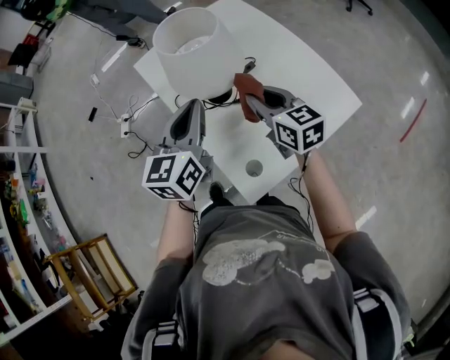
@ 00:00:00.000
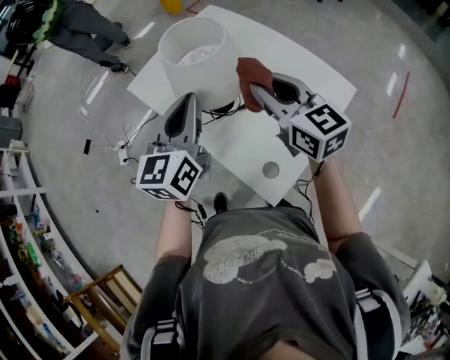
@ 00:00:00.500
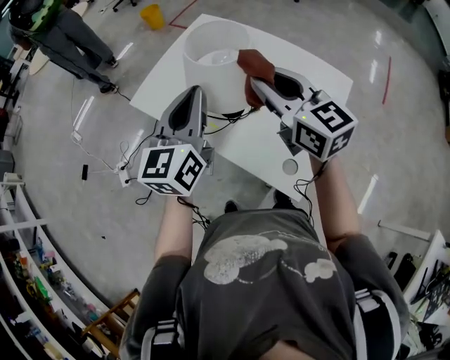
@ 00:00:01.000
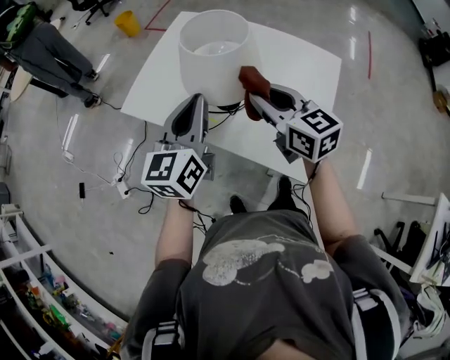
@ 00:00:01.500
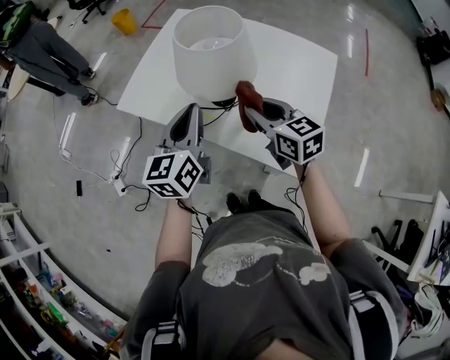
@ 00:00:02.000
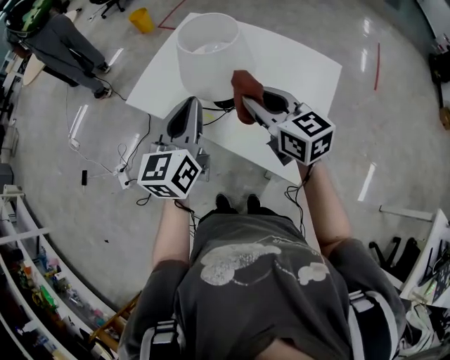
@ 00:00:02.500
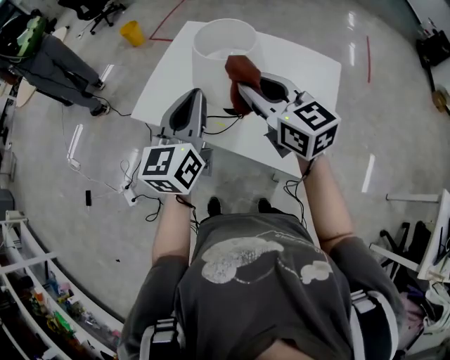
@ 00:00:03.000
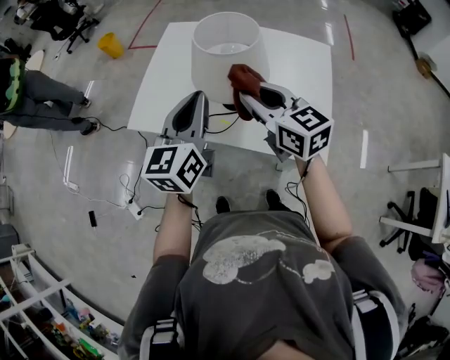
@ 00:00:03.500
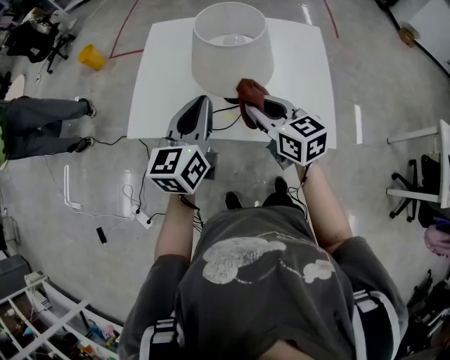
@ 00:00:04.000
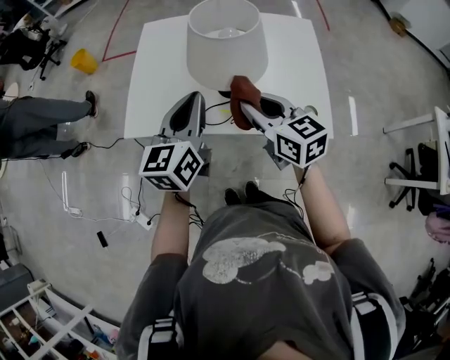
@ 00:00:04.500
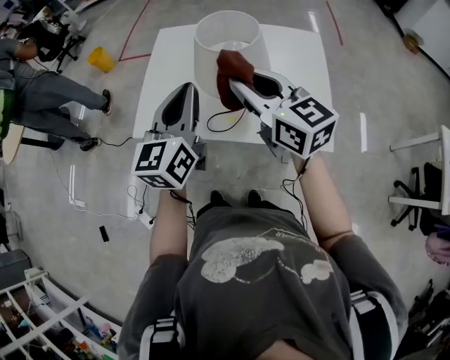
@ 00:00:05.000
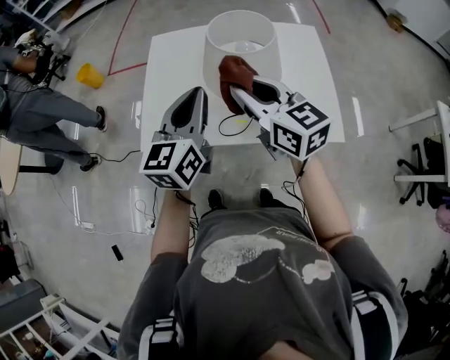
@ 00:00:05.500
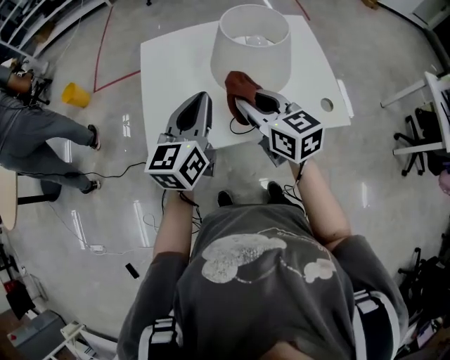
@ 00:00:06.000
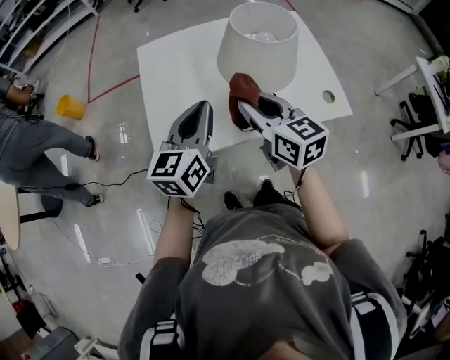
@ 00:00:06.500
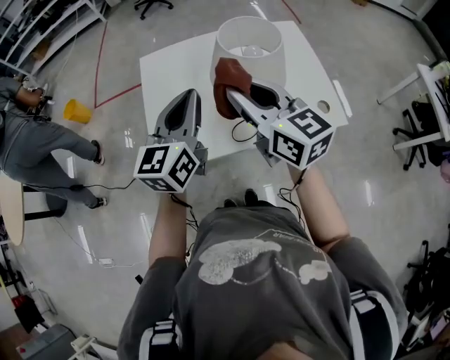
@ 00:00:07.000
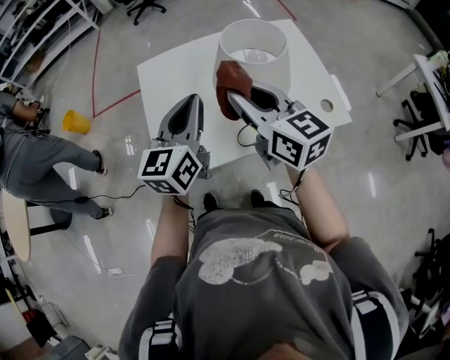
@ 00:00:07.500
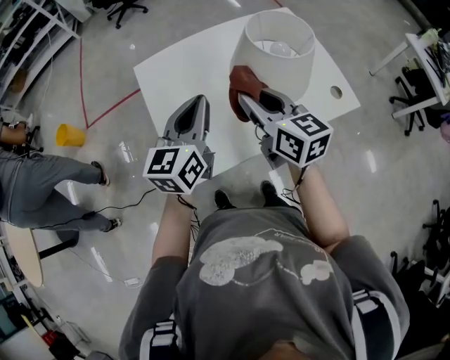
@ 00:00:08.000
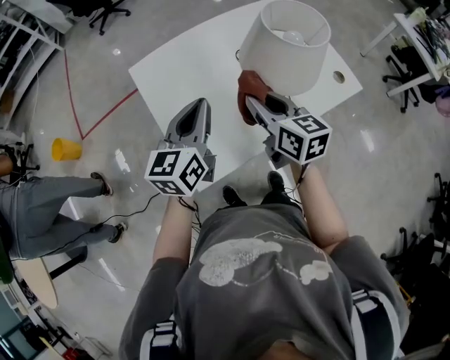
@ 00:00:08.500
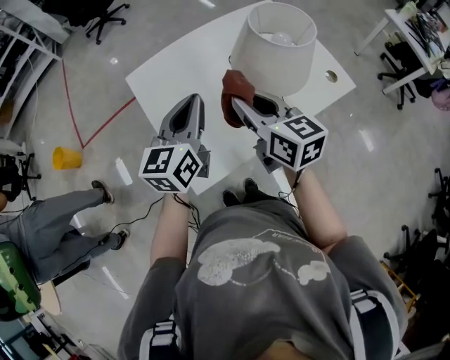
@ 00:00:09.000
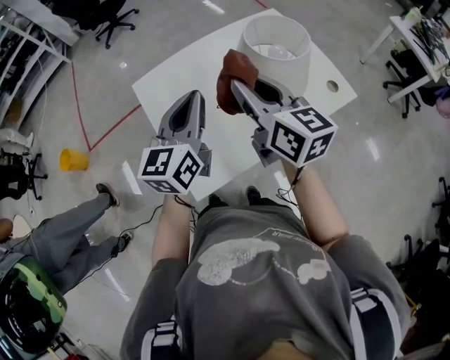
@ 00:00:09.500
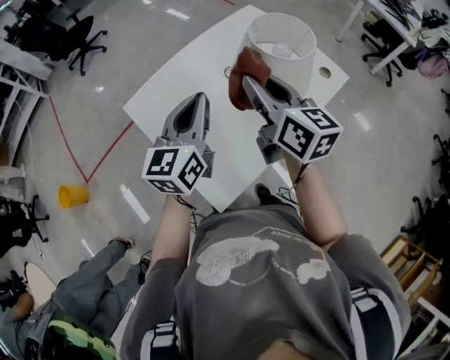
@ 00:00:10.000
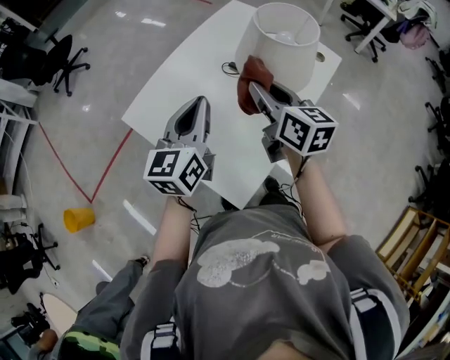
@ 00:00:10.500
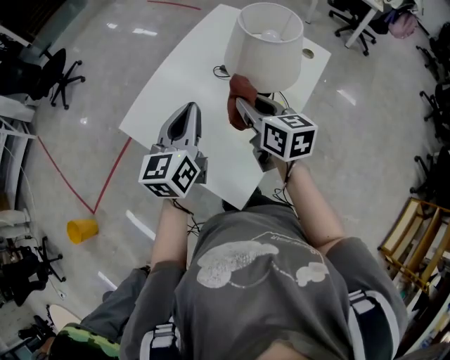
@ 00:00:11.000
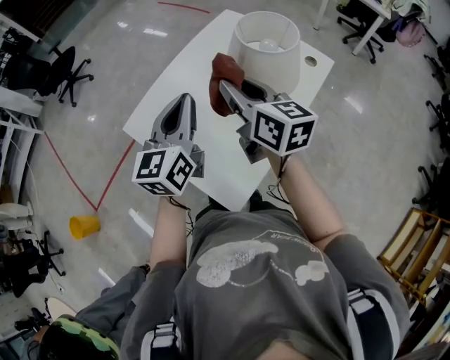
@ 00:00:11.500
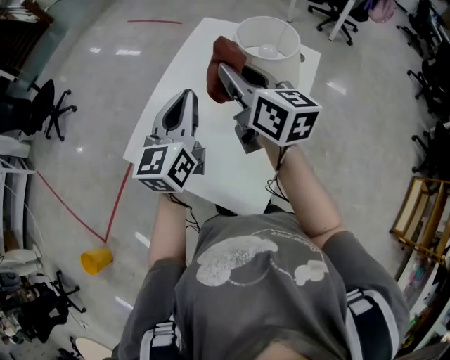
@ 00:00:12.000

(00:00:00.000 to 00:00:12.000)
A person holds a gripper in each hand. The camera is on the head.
00:00:00.000 - 00:00:02.000: The right gripper travels upward and back again, about 15 cm each way, and changes its angle by roughly 30 degrees. The left gripper moves some 10 cm, and swivels roughly 30 degrees.
00:00:02.000 - 00:00:04.000: The left gripper heads to the left and forward, covering approximately 5 cm, goes upward and returns, some 10 cm each way, and rotates roughly 20 degrees; the right gripper heads to the left, covering some 10 cm, and reaches about 15 cm upward, then returns.
00:00:04.000 - 00:00:06.000: The left gripper shifts approximately 10 cm to the left and forward; the right gripper travels to the left by about 10 cm, and travels upward and back again, some 15 cm each way.
00:00:06.000 - 00:00:08.000: The right gripper moves to the left and forward, some 10 cm, travels upward and back again, roughly 10 cm each way, and swivels some 20 degrees. The left gripper is displaced forward and to the left by about 10 cm.
00:00:08.000 - 00:00:10.000: The right gripper heads upward, covering approximately 5 cm, and changes its angle by approximately 30 degrees, while the left gripper heads forward, covering approximately 5 cm.
00:00:10.000 - 00:00:12.000: The grippers both shift forward by roughly 5 cm. The right gripper reaches some 10 cm downward, then returns.

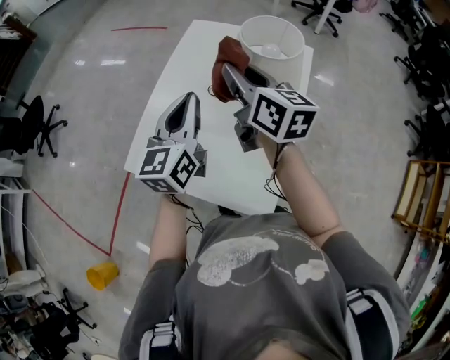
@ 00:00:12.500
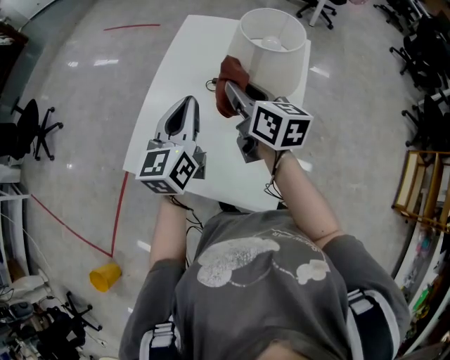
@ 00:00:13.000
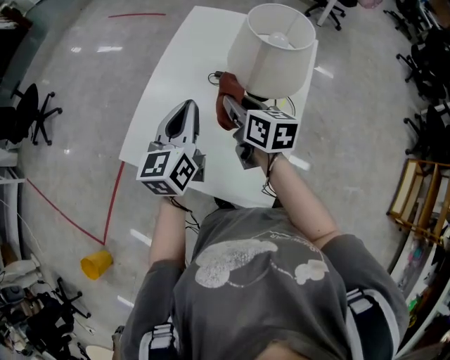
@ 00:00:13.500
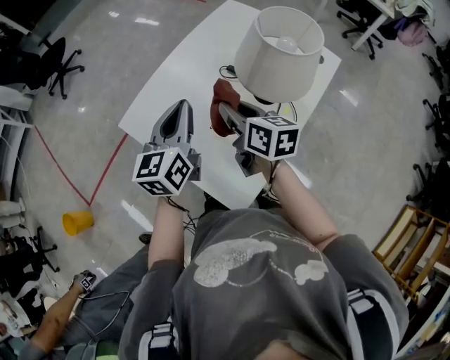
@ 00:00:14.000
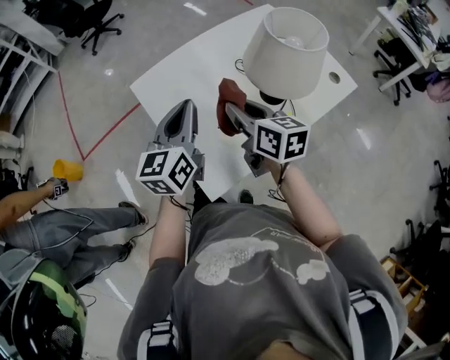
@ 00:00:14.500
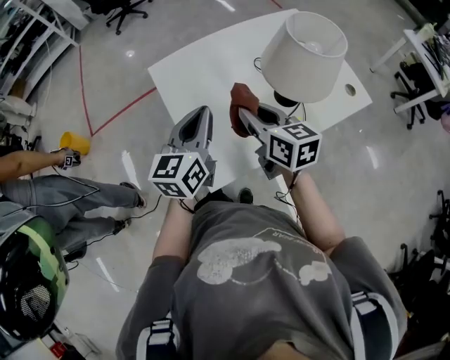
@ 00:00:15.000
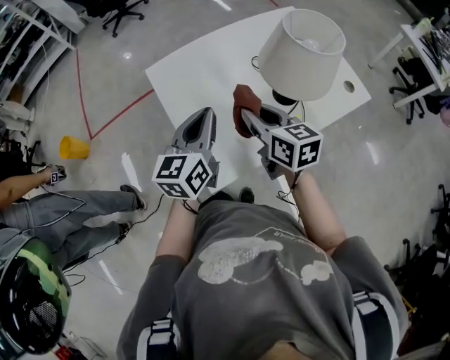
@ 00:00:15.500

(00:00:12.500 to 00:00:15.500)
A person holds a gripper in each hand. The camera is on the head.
00:00:12.500 - 00:00:14.000: The right gripper is displaced downward and backward by approximately 15 cm, and swivels about 30 degrees. The left gripper shifts approximately 10 cm downward and backward, and turns by approximately 20 degrees.
00:00:14.000 - 00:00:15.500: The right gripper heads backward, covering approximately 10 cm, and changes its angle by approximately 30 degrees. The left gripper travels backward by about 10 cm.

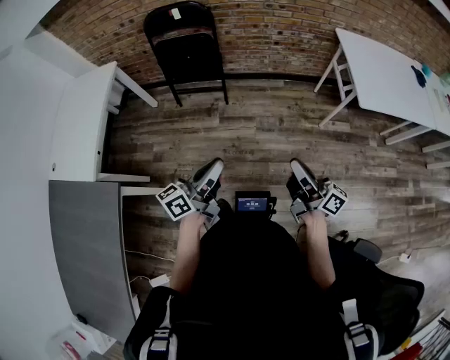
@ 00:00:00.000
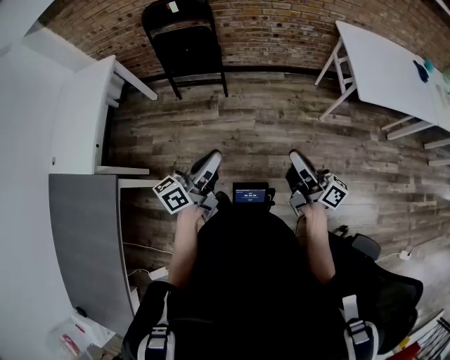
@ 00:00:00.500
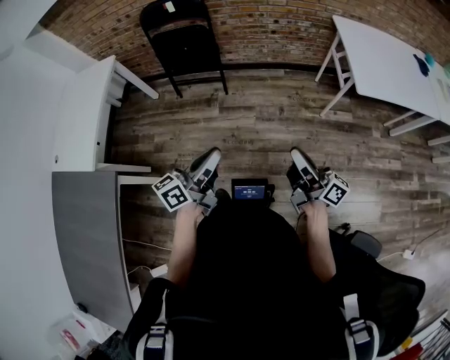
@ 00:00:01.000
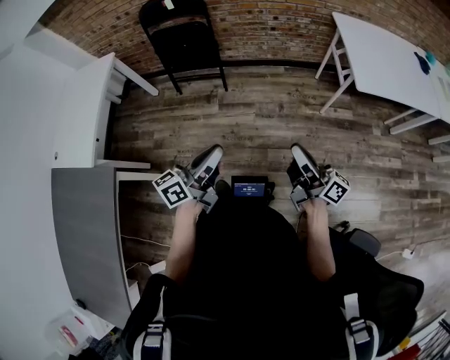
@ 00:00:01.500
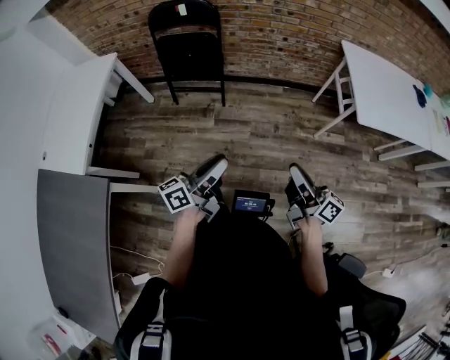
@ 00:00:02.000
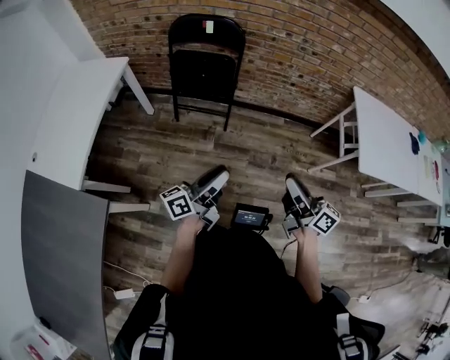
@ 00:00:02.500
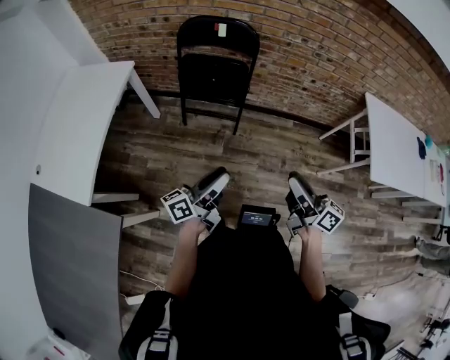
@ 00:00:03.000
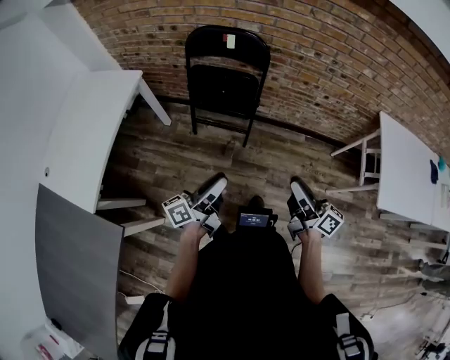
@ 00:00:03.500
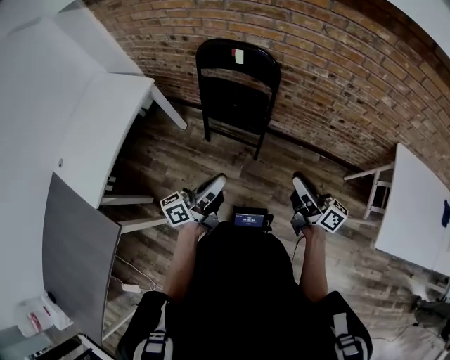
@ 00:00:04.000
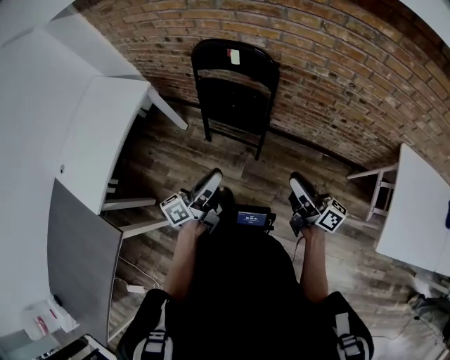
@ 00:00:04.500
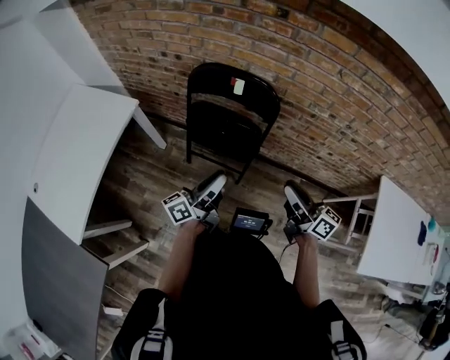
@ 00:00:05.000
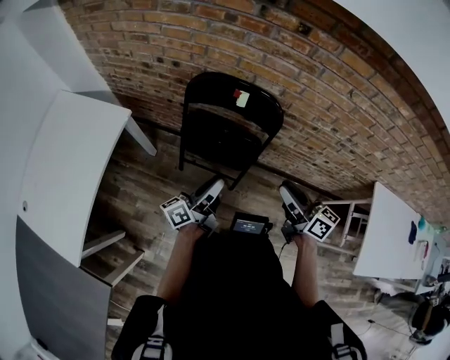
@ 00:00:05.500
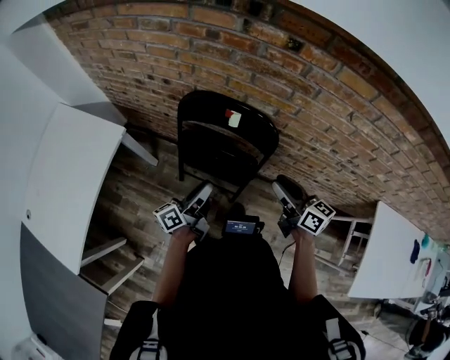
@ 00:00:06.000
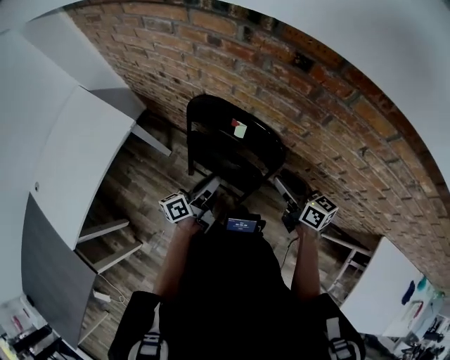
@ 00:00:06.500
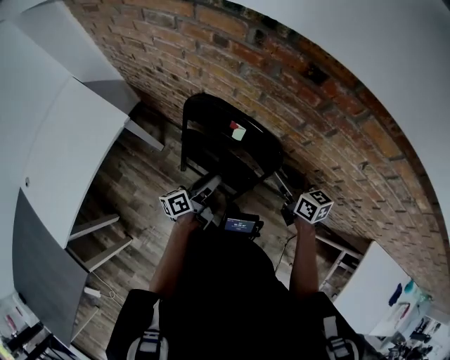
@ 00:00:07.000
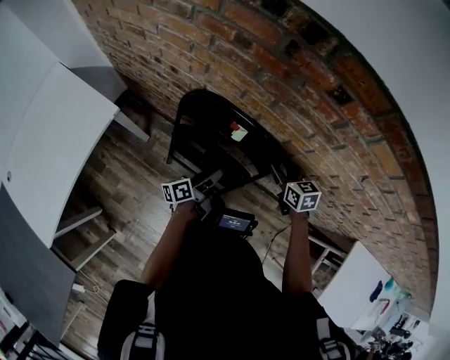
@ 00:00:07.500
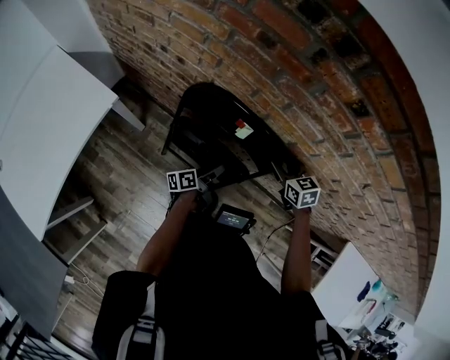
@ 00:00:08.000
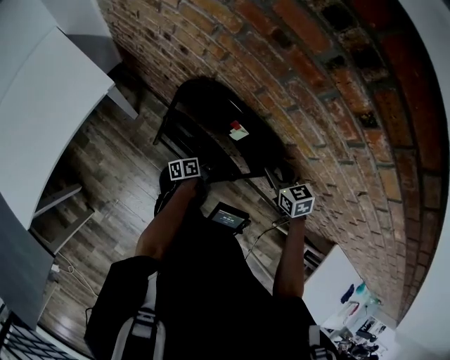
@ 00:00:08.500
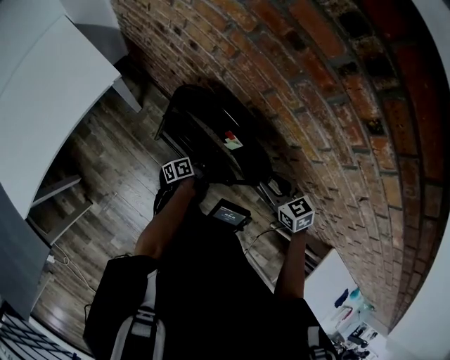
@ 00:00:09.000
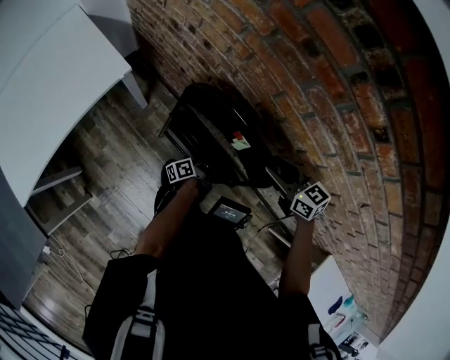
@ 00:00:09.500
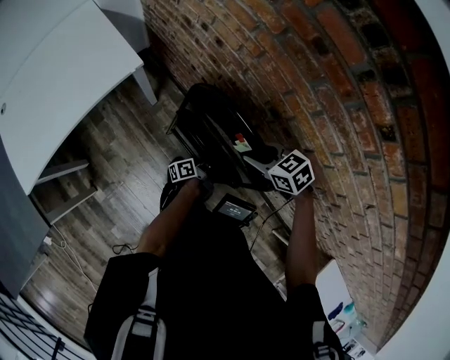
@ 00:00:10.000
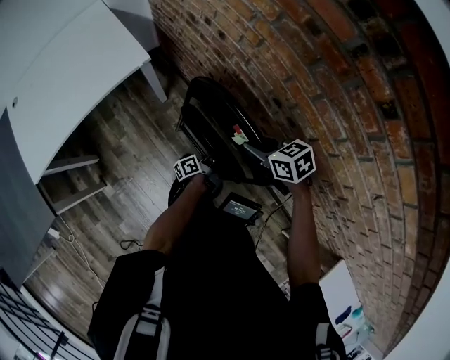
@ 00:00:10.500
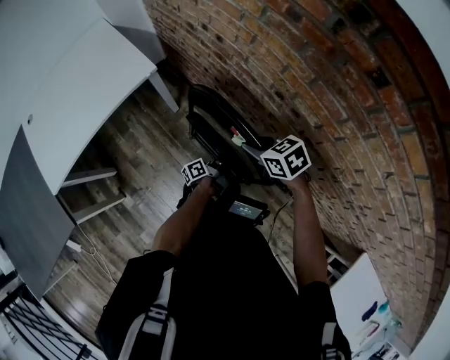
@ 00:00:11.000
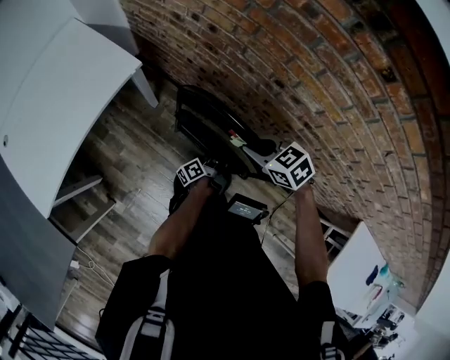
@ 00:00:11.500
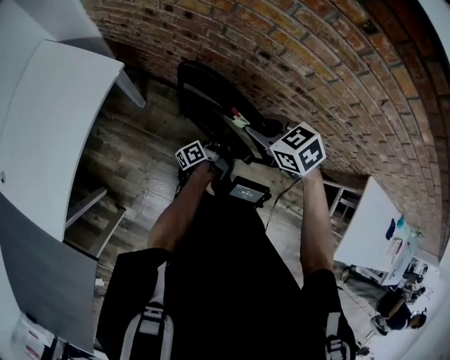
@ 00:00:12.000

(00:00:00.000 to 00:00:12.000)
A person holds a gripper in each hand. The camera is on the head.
00:00:02.000 - 00:00:04.000: The right gripper ends up approximately 40 cm from where it was.
00:00:04.000 - 00:00:06.000: The right gripper changes place by some 30 cm, and rotates roughly 30 degrees.
00:00:06.000 - 00:00:08.000: The right gripper ends up about 25 cm from where it was, and tips its fingers downward by approximately 40 degrees.
00:00:08.000 - 00:00:10.000: The right gripper shifts by about 20 cm, and turns by roughly 40 degrees.
00:00:10.000 - 00:00:12.000: The right gripper changes place by approximately 15 cm, changes its angle by some 20 degrees, and closes.
